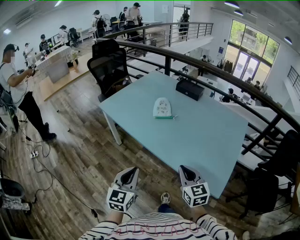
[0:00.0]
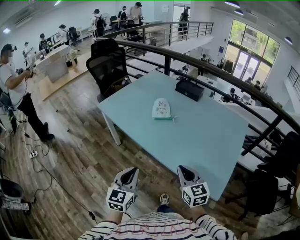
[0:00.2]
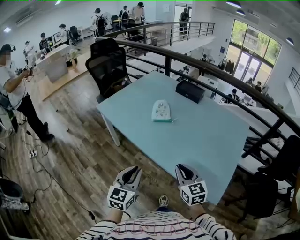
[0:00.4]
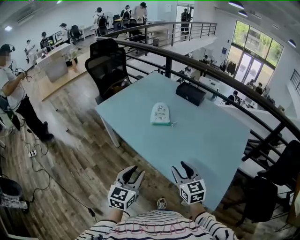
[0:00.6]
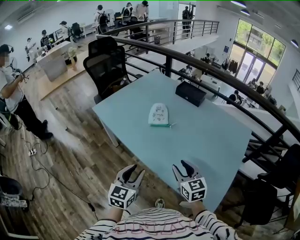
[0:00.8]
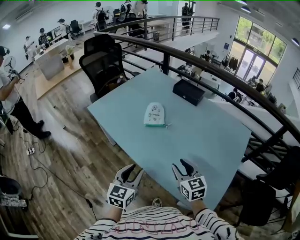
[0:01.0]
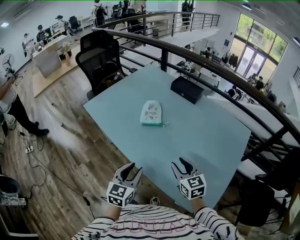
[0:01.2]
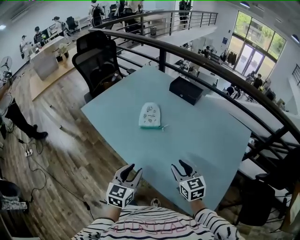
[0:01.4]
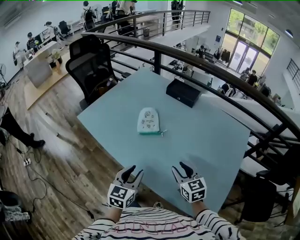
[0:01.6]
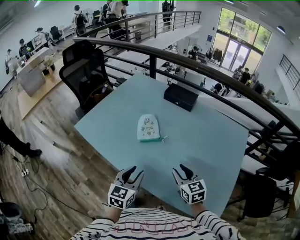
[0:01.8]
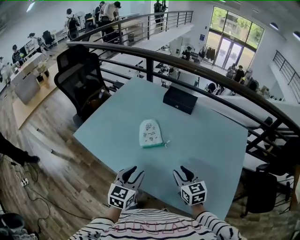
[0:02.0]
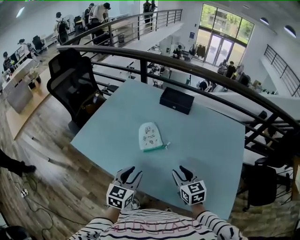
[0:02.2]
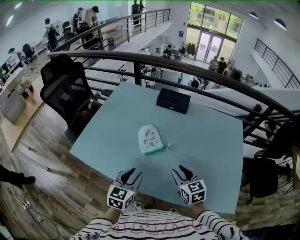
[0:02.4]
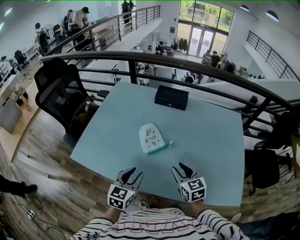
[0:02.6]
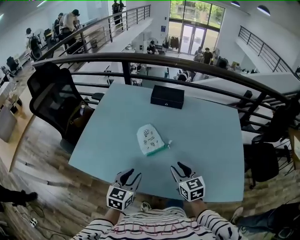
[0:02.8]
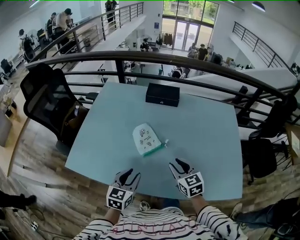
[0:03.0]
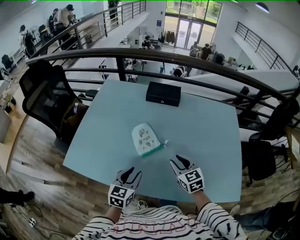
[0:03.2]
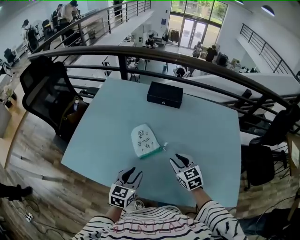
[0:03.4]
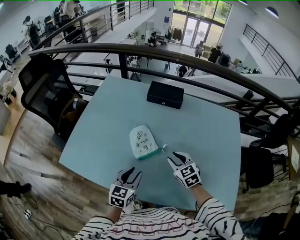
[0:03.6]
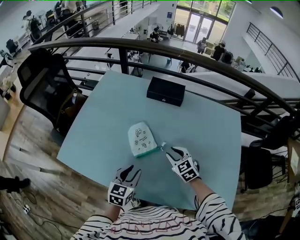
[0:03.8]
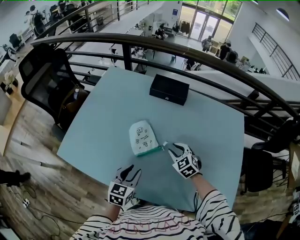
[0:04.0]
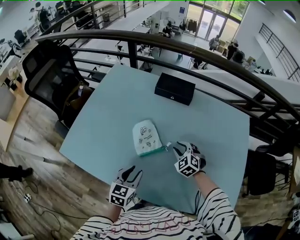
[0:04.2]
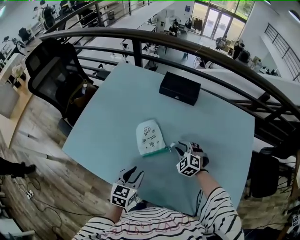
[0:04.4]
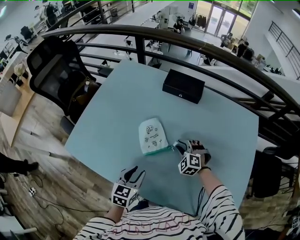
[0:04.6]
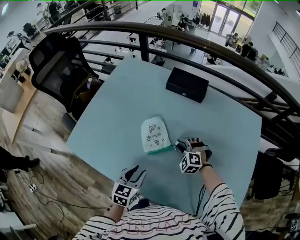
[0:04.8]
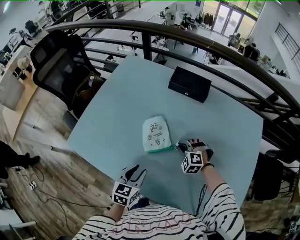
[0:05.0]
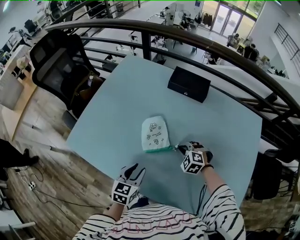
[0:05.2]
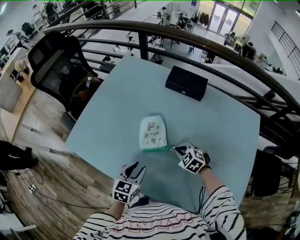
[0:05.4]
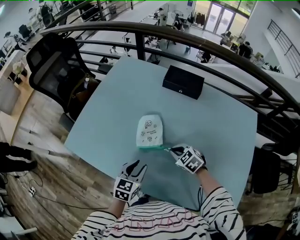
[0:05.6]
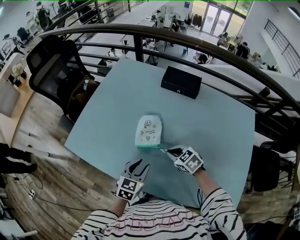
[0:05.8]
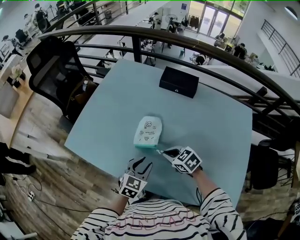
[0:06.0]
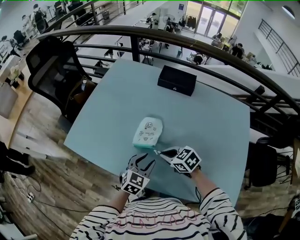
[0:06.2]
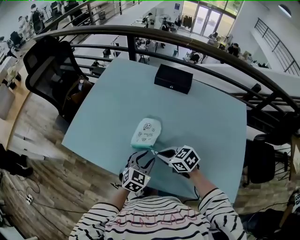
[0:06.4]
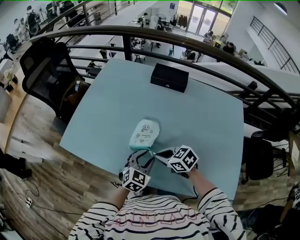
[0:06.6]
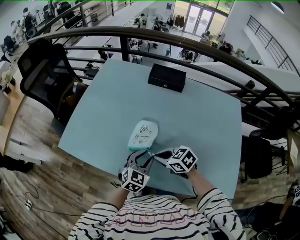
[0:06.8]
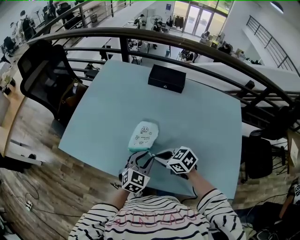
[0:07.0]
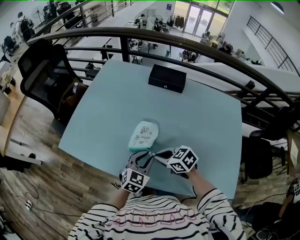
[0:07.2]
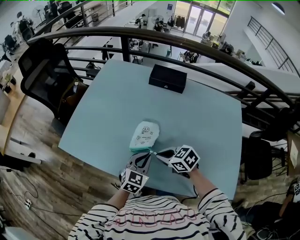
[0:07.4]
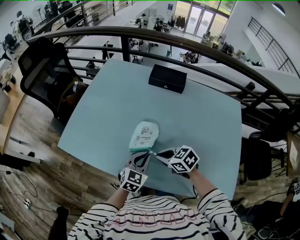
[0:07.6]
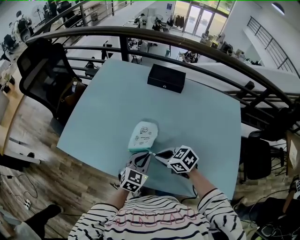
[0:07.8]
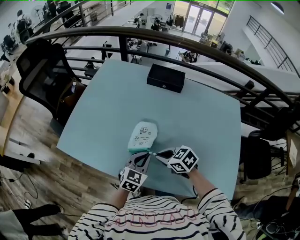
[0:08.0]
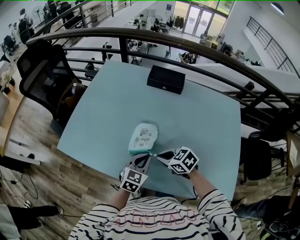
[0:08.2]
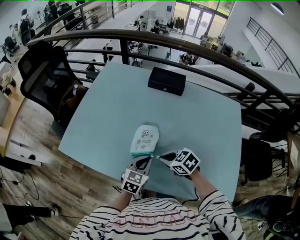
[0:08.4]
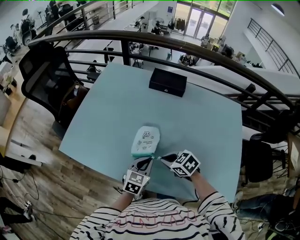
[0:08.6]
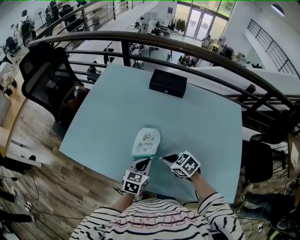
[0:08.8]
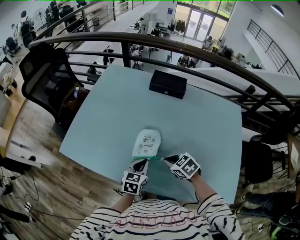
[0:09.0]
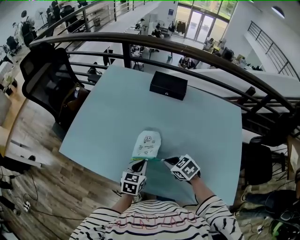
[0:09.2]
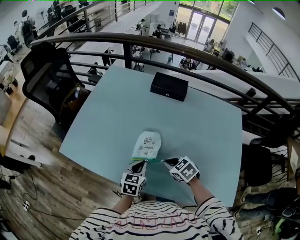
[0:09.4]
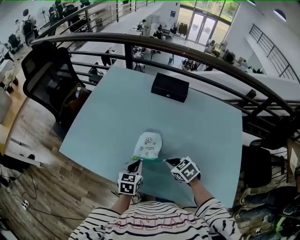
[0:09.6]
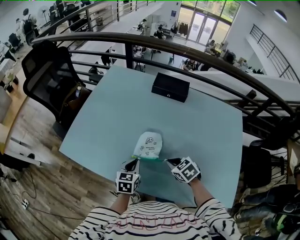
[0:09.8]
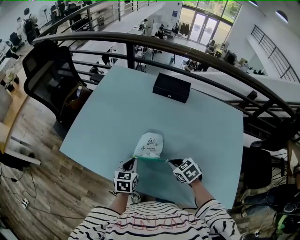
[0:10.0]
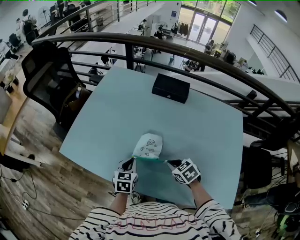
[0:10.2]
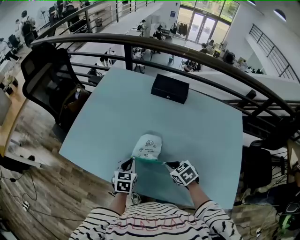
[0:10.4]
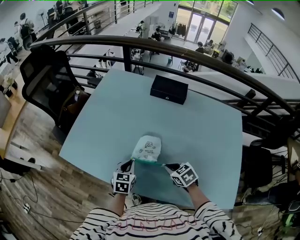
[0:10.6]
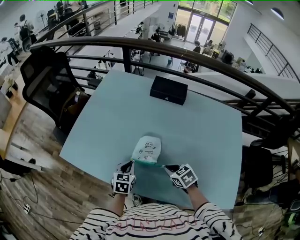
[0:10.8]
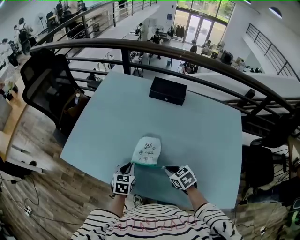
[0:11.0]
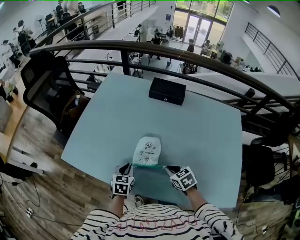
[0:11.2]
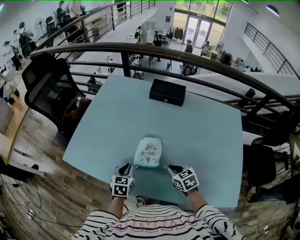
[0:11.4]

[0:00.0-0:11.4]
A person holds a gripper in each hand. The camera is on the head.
0:00.0 to 0:01.4: Both grippers move forward and to the right, about 20 cm. The right gripper opens up. Meanwhile the left gripper opens its fingers.
0:01.4 to 0:02.8: The left gripper shifts by approximately 25 cm, and swivels approximately 30 degrees; the right gripper moves approximately 20 cm, and changes its angle by some 30 degrees.
0:02.8 to 0:04.2: The left gripper travels downward and forward by approximately 10 cm; the right gripper shifts some 20 cm forward and downward, and rotates around the line of its fingers by about 40 degrees, counterclockwise from behind.
0:04.2 to 0:05.6: The right gripper moves to the left, about 5 cm, changes its angle by about 30 degrees, and closes up.
0:05.6 to 0:07.2: The right gripper goes approximately 10 cm backward, to the left and upward, and turns by about 20 degrees. Meanwhile the left gripper goes some 5 cm to the right, and rotates approximately 20 degrees.
0:07.2 to 0:08.6: The left gripper closes.
0:08.6 to 0:10.0: The left gripper travels to the left by roughly 10 cm, and changes its angle by approximately 20 degrees.
0:10.0 to 0:11.4: The grippers stay close to where they were, moving slightly.

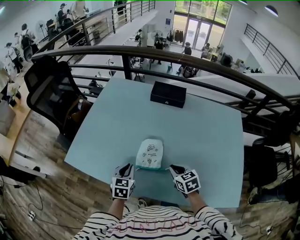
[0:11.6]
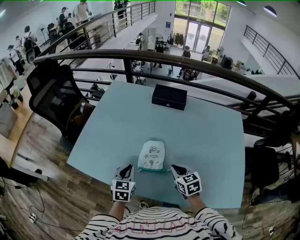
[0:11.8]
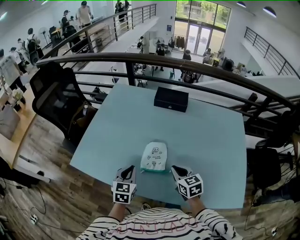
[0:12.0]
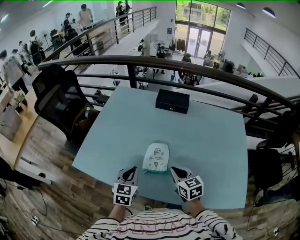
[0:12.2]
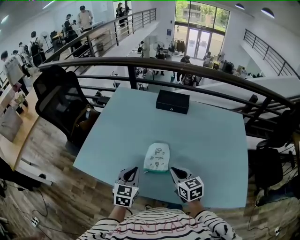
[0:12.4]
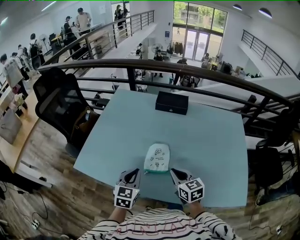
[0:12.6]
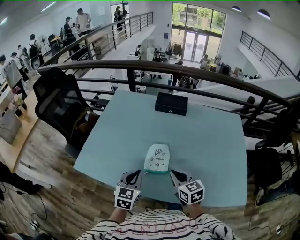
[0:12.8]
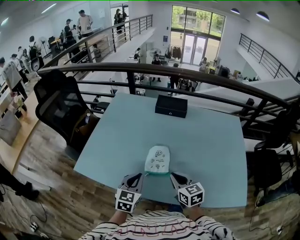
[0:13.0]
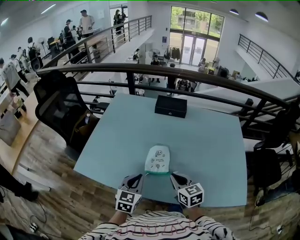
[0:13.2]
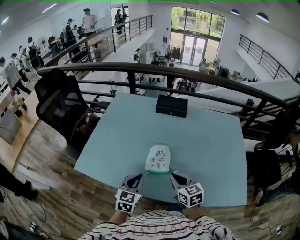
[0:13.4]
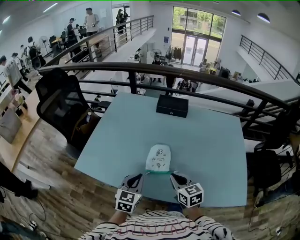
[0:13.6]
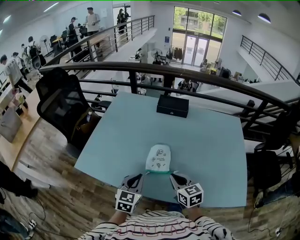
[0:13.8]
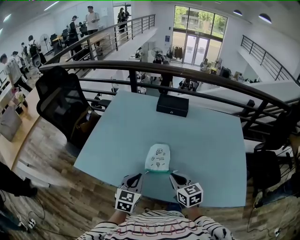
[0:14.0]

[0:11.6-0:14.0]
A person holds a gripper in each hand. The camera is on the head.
0:11.6 to 0:12.8: The two grippers go some 10 cm upward.
0:12.8 to 0:14.0: There are only small adjustments of the grippers.

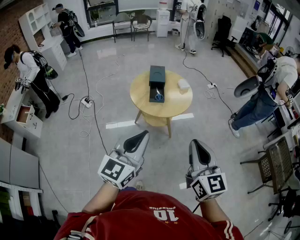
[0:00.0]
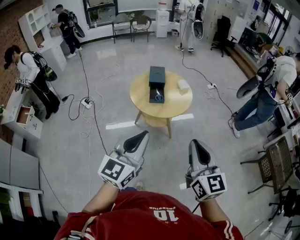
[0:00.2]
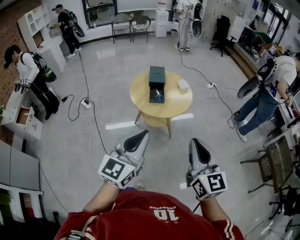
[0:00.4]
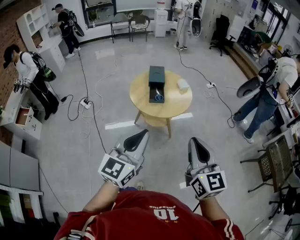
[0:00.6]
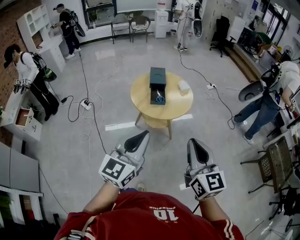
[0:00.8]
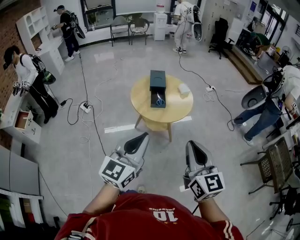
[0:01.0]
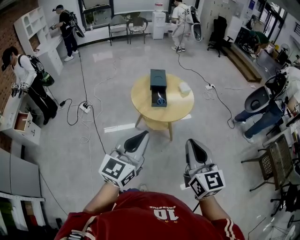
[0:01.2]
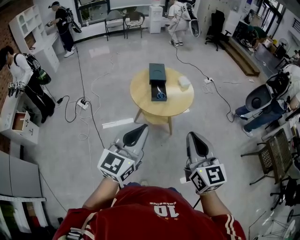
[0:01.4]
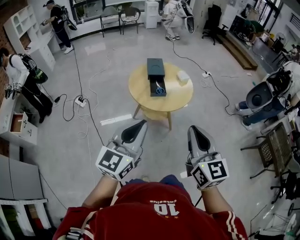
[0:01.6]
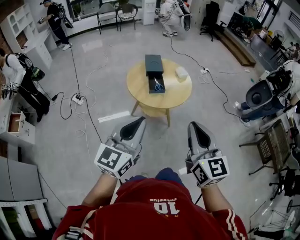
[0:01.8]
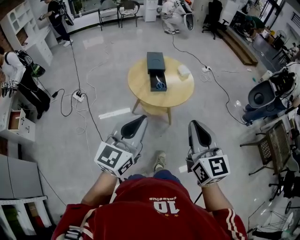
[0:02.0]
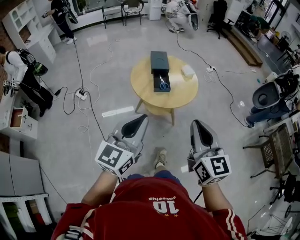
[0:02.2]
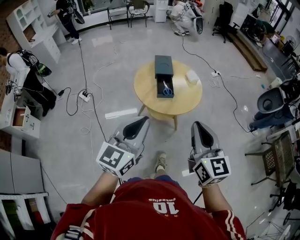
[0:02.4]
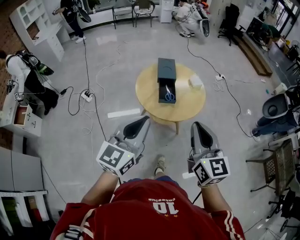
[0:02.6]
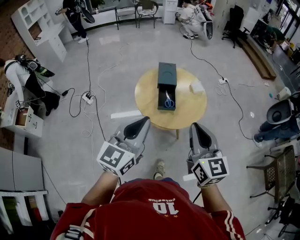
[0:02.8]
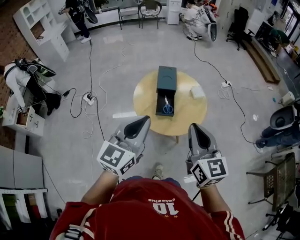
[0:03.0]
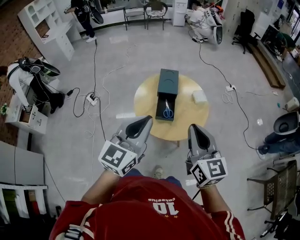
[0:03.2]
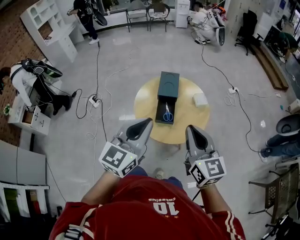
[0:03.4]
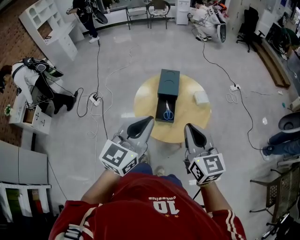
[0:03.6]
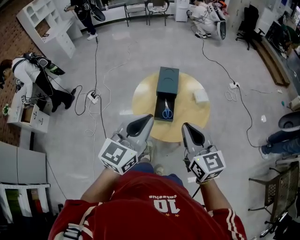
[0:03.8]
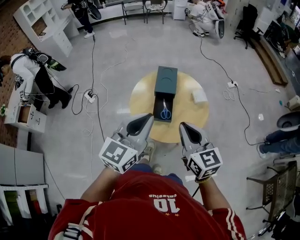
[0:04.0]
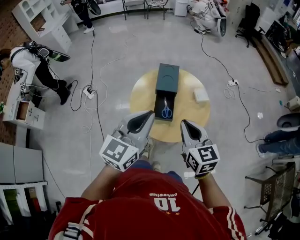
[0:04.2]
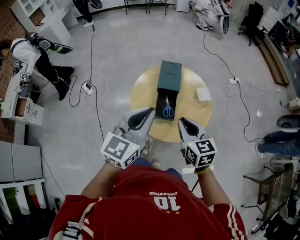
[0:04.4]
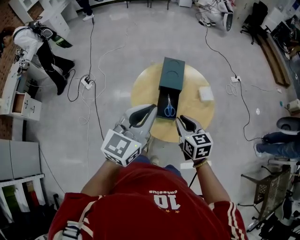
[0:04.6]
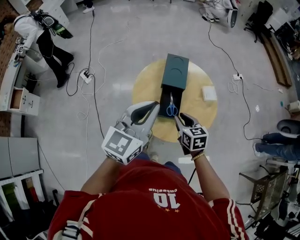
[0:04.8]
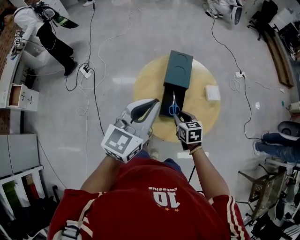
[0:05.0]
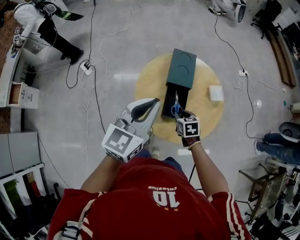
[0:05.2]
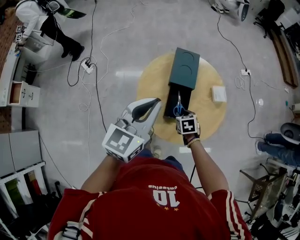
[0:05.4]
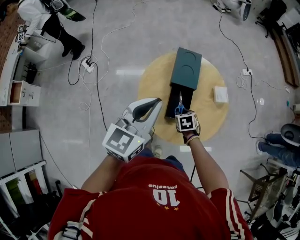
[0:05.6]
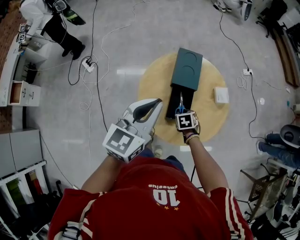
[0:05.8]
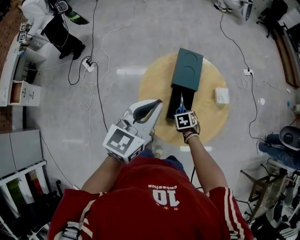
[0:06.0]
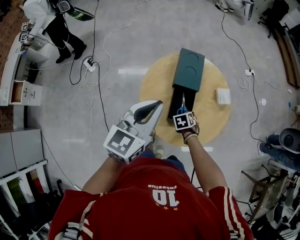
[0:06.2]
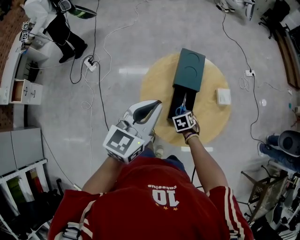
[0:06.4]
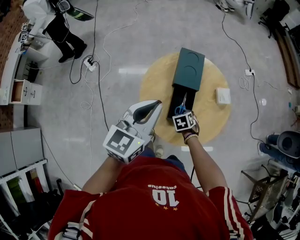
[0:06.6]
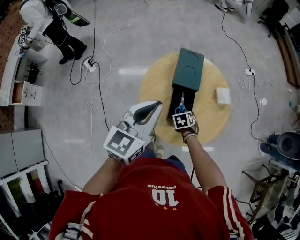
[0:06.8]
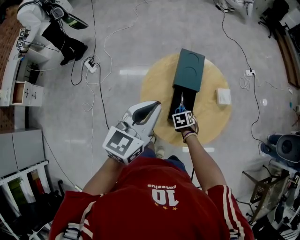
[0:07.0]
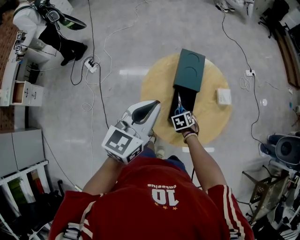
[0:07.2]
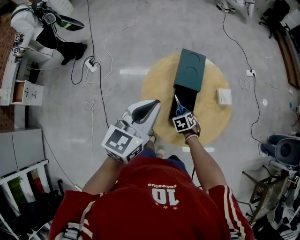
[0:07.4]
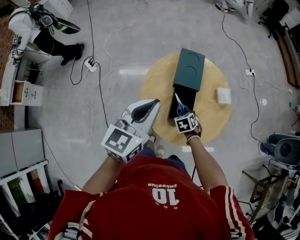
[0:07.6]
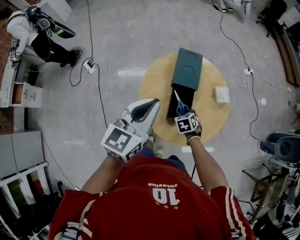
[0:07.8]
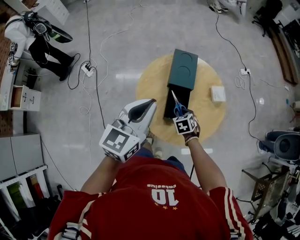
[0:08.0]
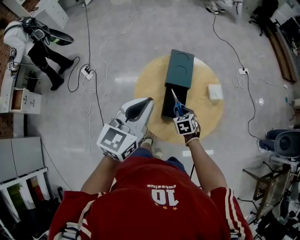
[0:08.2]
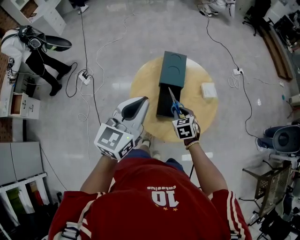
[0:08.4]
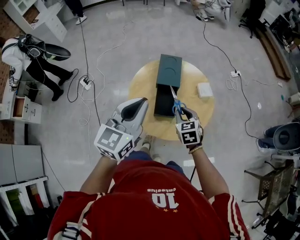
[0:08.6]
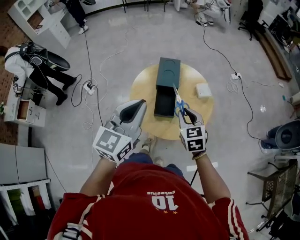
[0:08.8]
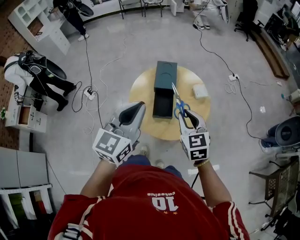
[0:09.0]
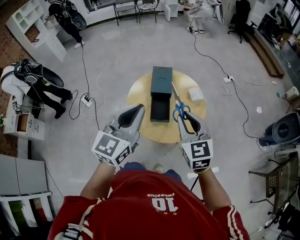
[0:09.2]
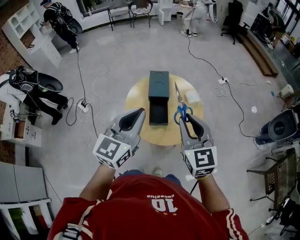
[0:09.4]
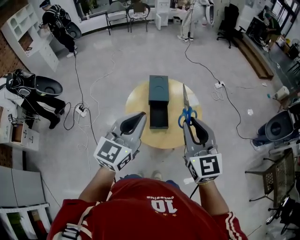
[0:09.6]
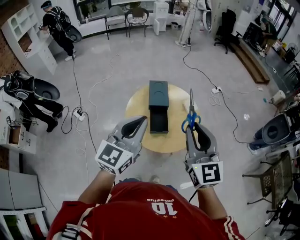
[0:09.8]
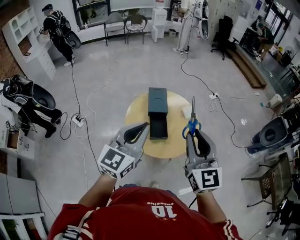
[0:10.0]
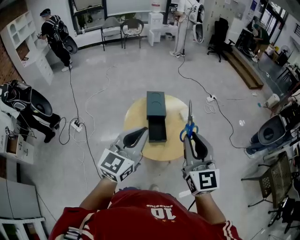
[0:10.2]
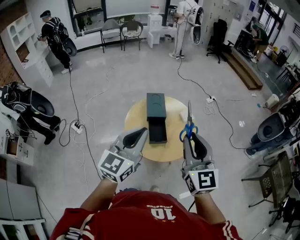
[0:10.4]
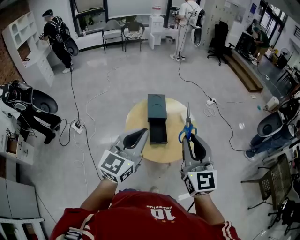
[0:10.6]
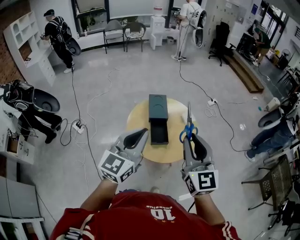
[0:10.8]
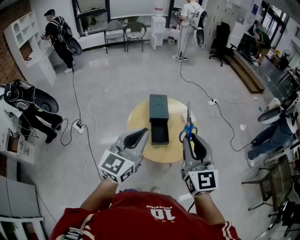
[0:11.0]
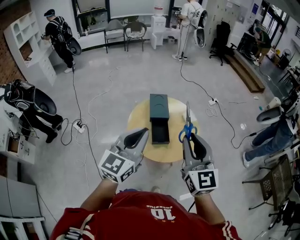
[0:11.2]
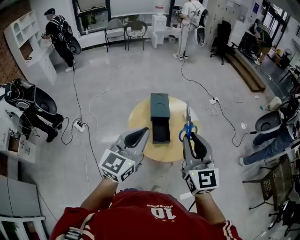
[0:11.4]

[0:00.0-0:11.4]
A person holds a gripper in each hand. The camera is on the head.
0:00.0 to 0:01.4: The grippers both shift to the left by approximately 5 cm.
0:01.4 to 0:02.8: The grippers both shift forward by some 20 cm.
0:02.8 to 0:04.2: The left gripper moves forward and to the right, approximately 15 cm, while the right gripper heads forward and downward, covering approximately 20 cm.
0:04.2 to 0:05.6: The left gripper travels forward, downward and to the left by roughly 20 cm. Meanwhile the right gripper travels downward and forward by about 40 cm, tilts its fingers some 50 degrees downward, and opens its fingers.
0:05.6 to 0:07.2: The grippers stay close to where they were, moving slightly.
0:07.2 to 0:08.6: The left gripper ends up roughly 10 cm from where it was. Meanwhile the right gripper is displaced upward by about 20 cm, and tilts its fingers approximately 30 degrees upward.
0:08.6 to 0:10.0: The left gripper goes approximately 10 cm upward and backward, while the right gripper shifts roughly 35 cm upward and backward, and tilts its fingers some 40 degrees upward.
0:10.0 to 0:11.4: There are only small adjustments of the grippers.
